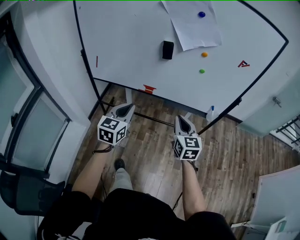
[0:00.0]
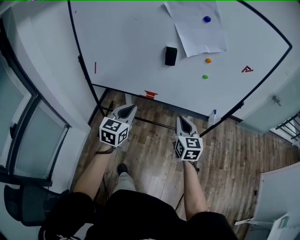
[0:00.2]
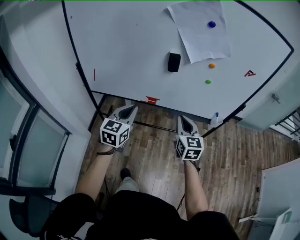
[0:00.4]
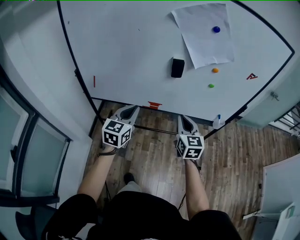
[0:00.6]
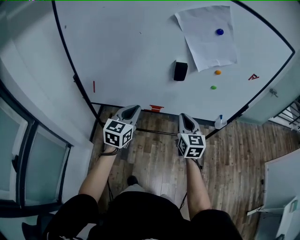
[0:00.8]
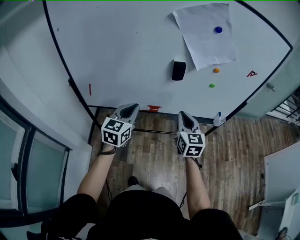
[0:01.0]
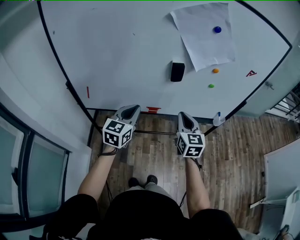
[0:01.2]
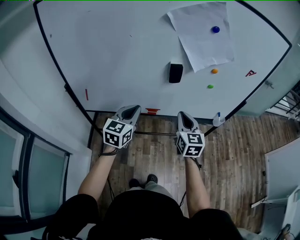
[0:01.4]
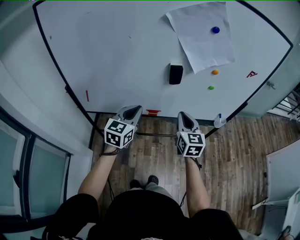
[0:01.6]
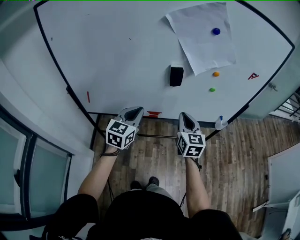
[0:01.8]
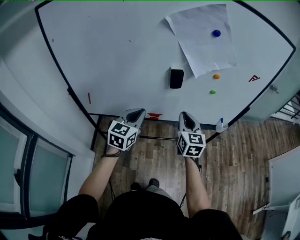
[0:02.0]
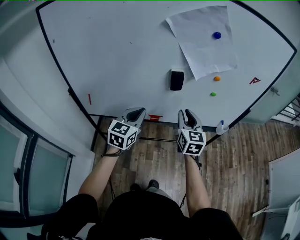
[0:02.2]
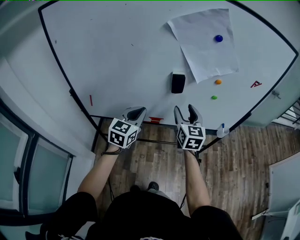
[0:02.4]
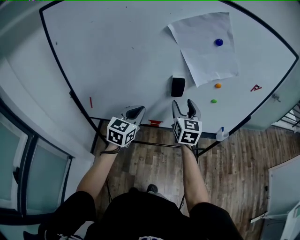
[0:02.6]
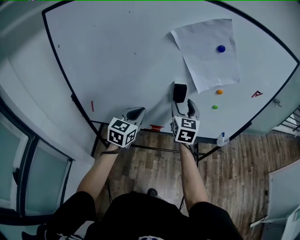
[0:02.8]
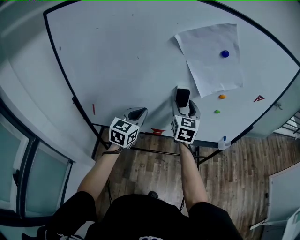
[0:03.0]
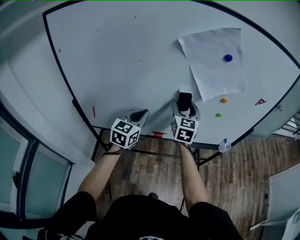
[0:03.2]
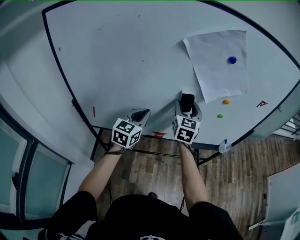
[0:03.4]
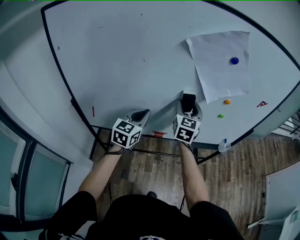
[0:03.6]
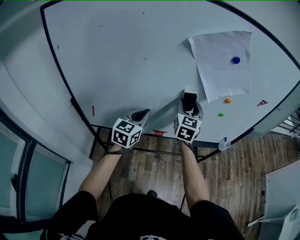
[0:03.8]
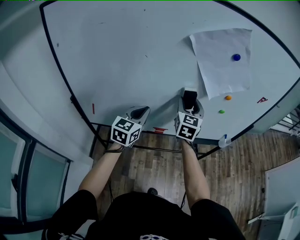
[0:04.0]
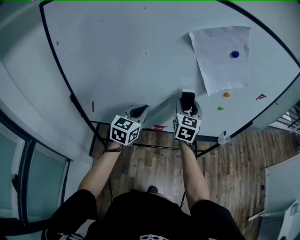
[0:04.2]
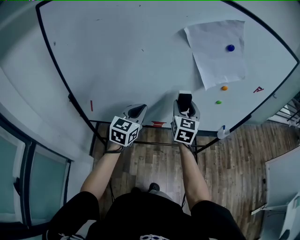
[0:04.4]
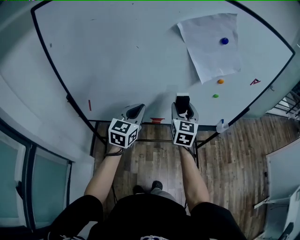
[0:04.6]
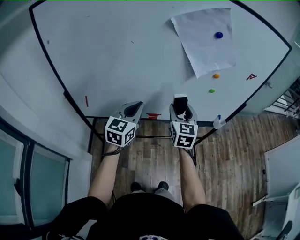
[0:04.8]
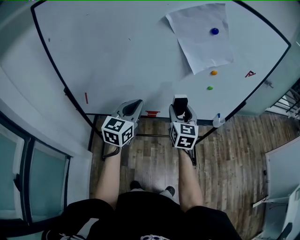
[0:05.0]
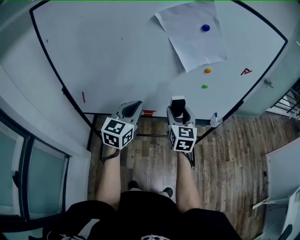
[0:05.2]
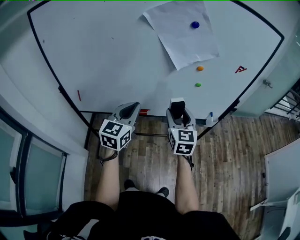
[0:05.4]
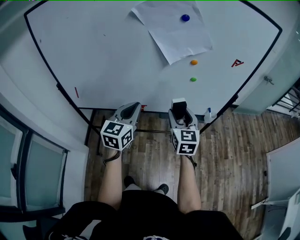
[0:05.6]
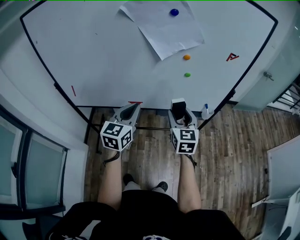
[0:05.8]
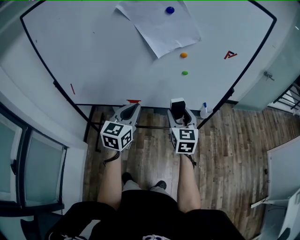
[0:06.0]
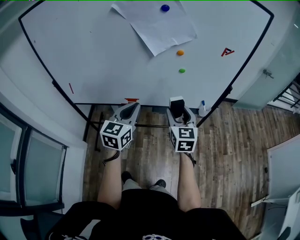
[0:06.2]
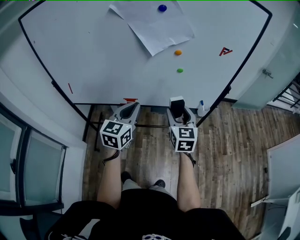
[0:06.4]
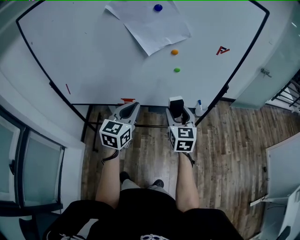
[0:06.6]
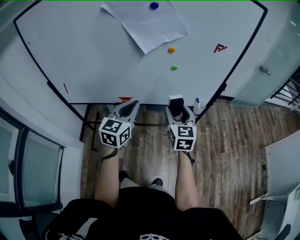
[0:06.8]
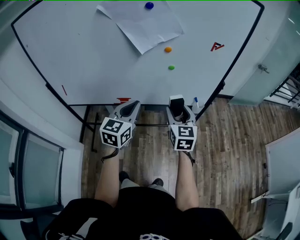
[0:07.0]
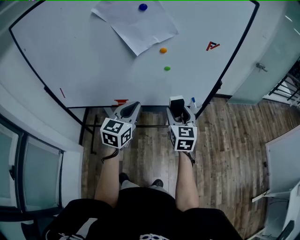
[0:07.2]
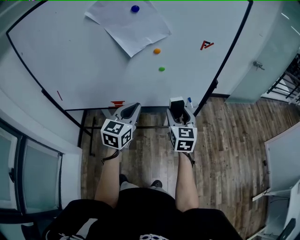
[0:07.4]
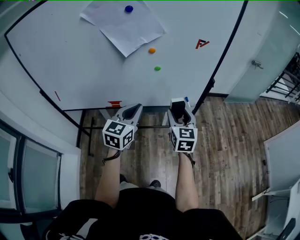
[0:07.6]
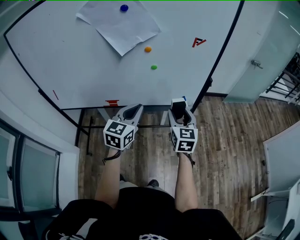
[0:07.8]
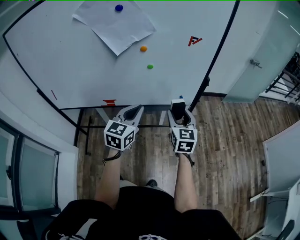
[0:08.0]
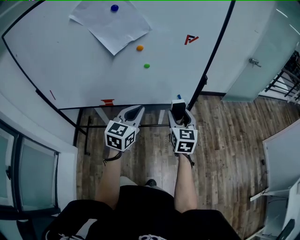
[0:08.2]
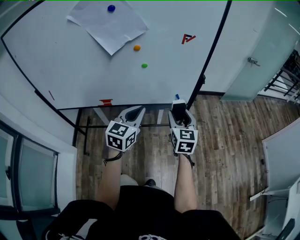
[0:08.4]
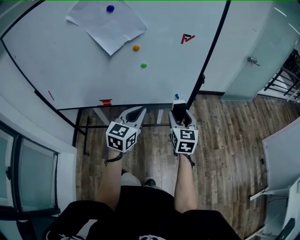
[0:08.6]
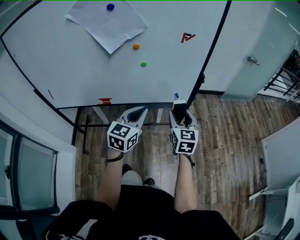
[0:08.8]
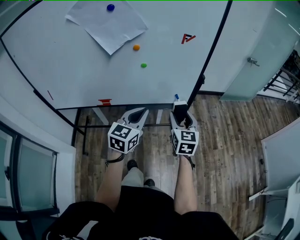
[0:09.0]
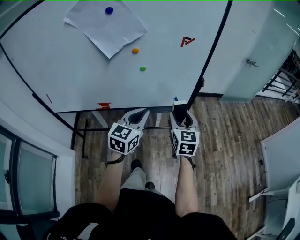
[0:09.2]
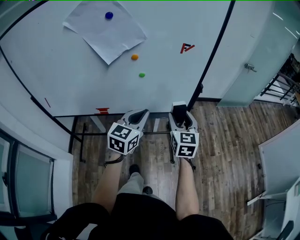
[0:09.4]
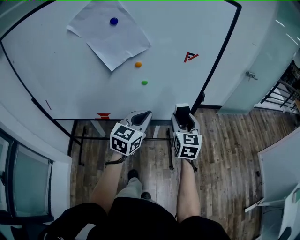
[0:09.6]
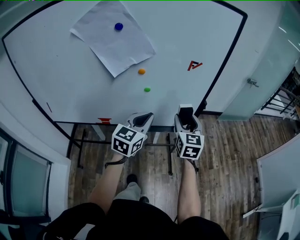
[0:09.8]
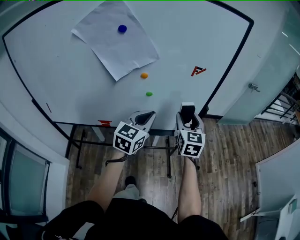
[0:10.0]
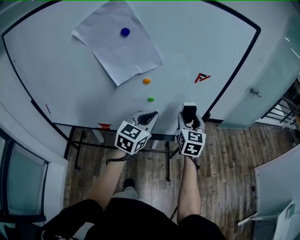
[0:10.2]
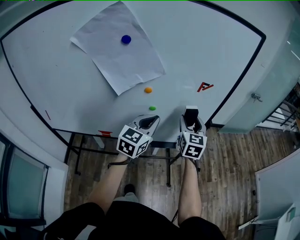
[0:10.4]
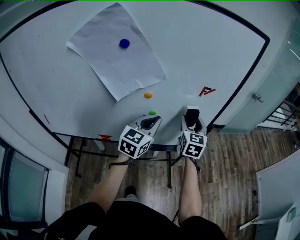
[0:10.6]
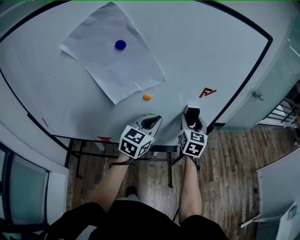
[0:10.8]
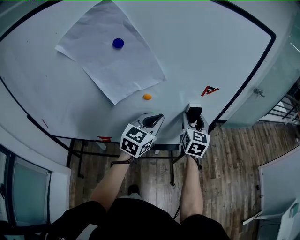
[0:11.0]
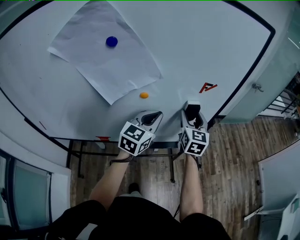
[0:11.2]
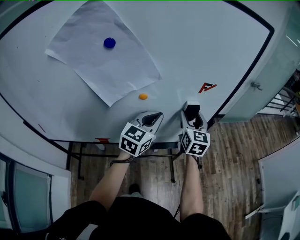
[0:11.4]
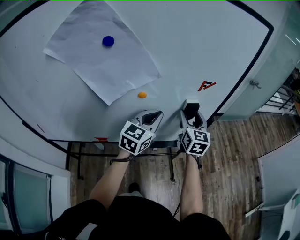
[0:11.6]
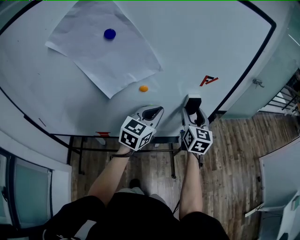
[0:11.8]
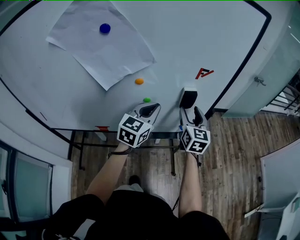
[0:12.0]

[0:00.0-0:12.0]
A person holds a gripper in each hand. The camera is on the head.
0:00.0 to 0:01.6: The two grippers go approximately 20 cm forward and to the left.
0:01.6 to 0:03.0: The left gripper travels forward by some 5 cm. The right gripper shifts some 15 cm forward, upward and to the left, and opens up.
0:03.0 to 0:04.4: The grippers stay close to where they were, moving slightly.
0:04.4 to 0:06.0: The two grippers go about 25 cm to the right and backward.
0:06.0 to 0:07.6: The grippers both shift to the right by some 15 cm.
0:07.6 to 0:09.0: Both grippers move to the right, roughly 10 cm.
0:09.0 to 0:10.4: The left gripper travels forward by roughly 15 cm; the right gripper heads forward and upward, covering some 20 cm.
0:10.4 to 0:12.0: The left gripper shifts by about 5 cm.

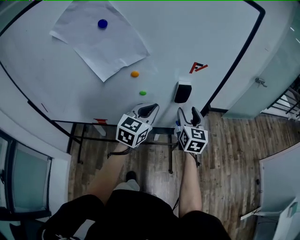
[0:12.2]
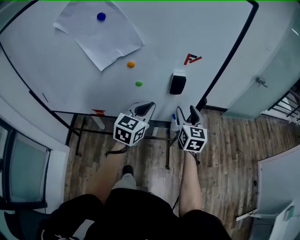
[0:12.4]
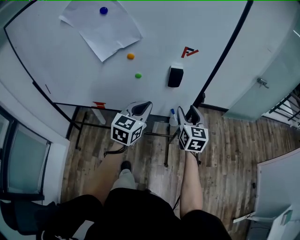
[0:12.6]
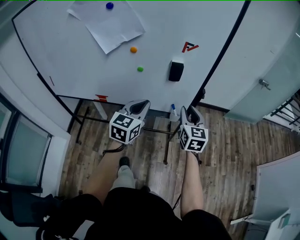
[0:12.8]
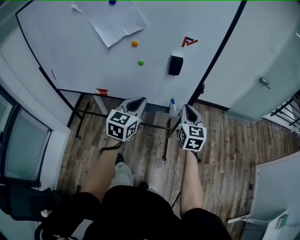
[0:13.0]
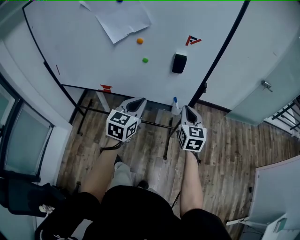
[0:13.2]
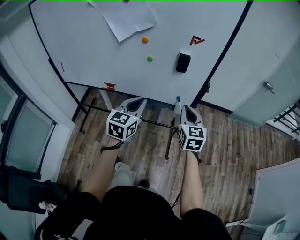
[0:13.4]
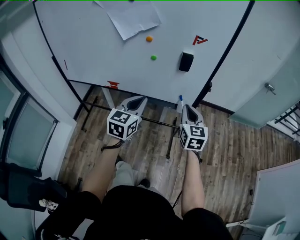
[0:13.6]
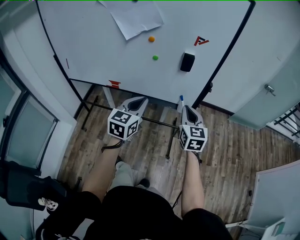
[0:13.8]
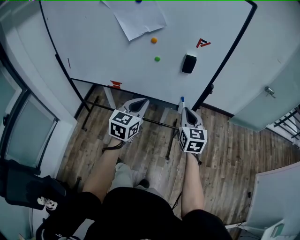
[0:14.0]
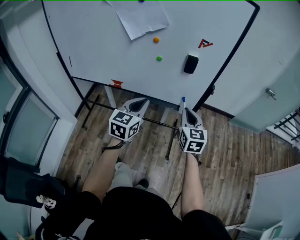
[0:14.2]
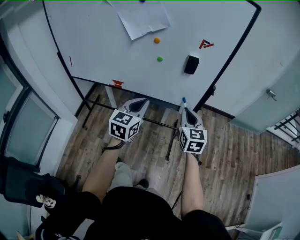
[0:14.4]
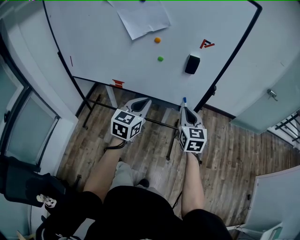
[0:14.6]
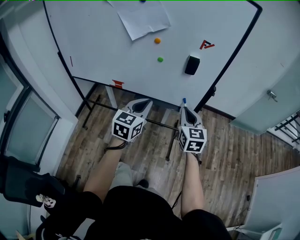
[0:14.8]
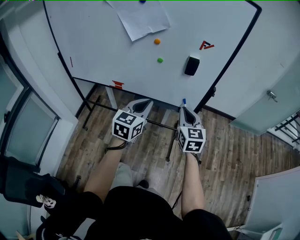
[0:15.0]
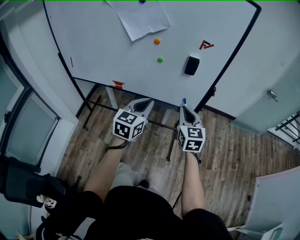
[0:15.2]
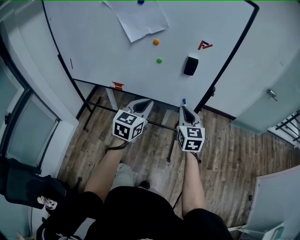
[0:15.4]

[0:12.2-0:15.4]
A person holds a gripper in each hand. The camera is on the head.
0:12.2 to 0:13.8: The two grippers go approximately 20 cm backward. The right gripper closes its fingers.
0:13.8 to 0:15.4: There are only small adjustments of the grippers.

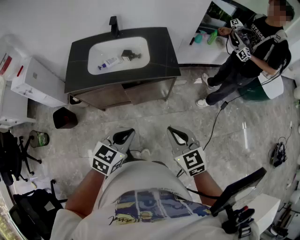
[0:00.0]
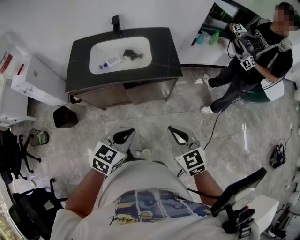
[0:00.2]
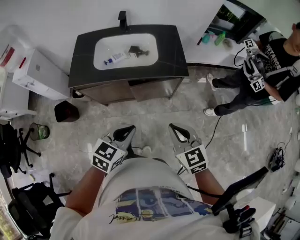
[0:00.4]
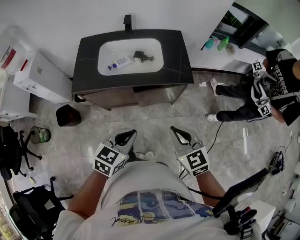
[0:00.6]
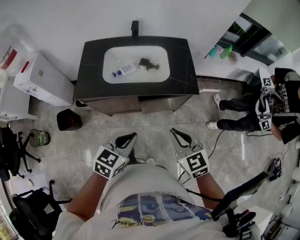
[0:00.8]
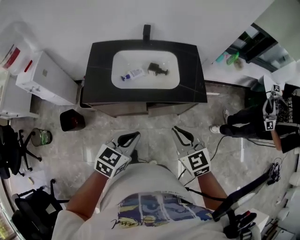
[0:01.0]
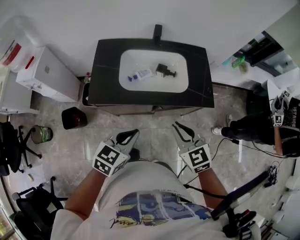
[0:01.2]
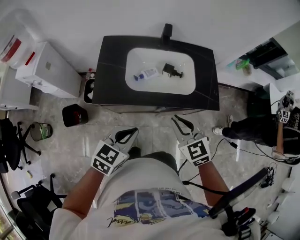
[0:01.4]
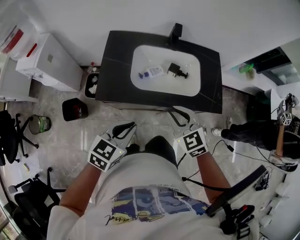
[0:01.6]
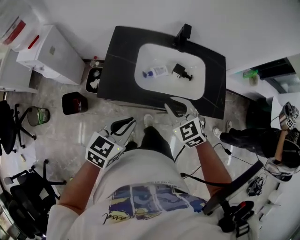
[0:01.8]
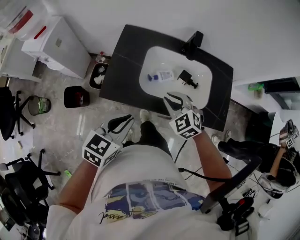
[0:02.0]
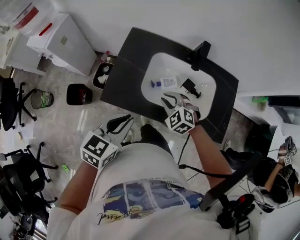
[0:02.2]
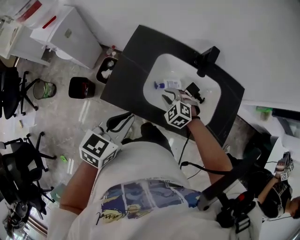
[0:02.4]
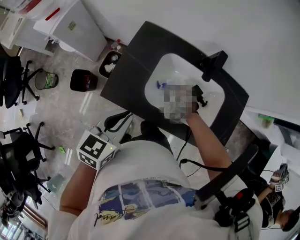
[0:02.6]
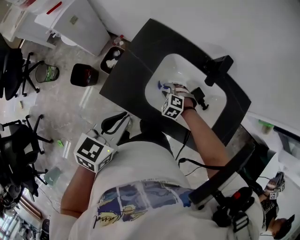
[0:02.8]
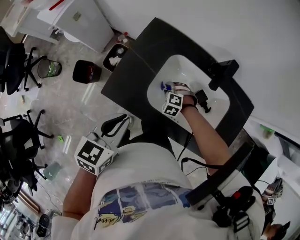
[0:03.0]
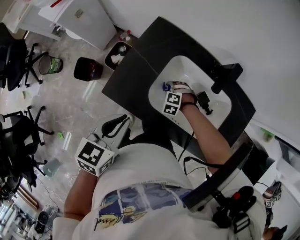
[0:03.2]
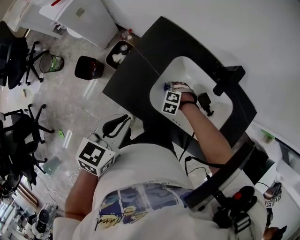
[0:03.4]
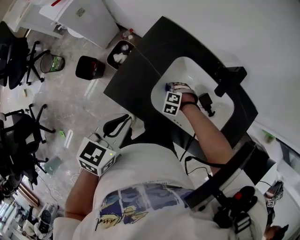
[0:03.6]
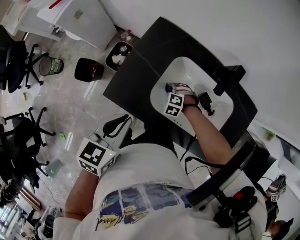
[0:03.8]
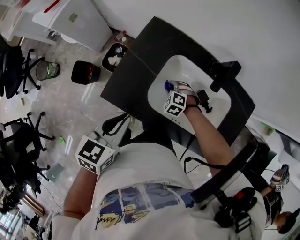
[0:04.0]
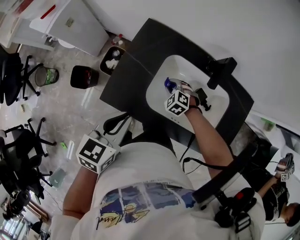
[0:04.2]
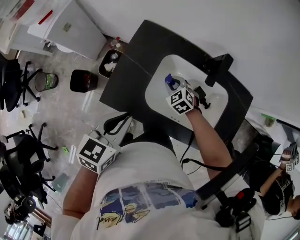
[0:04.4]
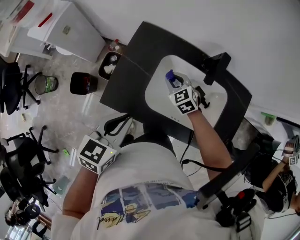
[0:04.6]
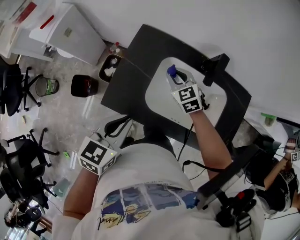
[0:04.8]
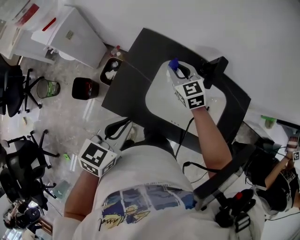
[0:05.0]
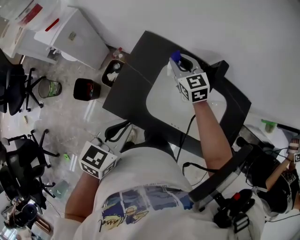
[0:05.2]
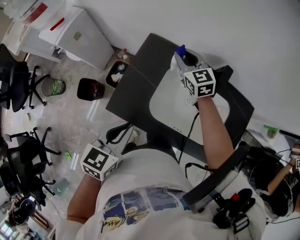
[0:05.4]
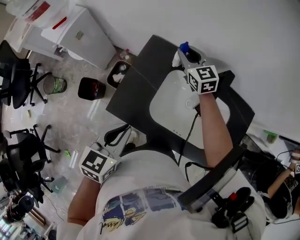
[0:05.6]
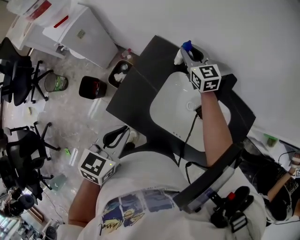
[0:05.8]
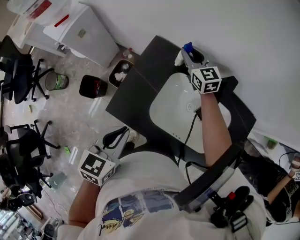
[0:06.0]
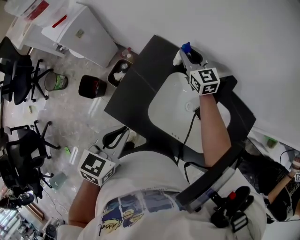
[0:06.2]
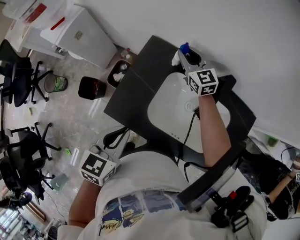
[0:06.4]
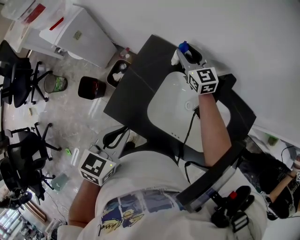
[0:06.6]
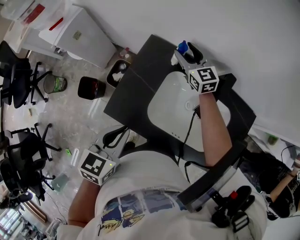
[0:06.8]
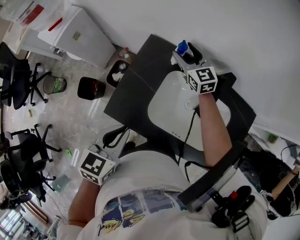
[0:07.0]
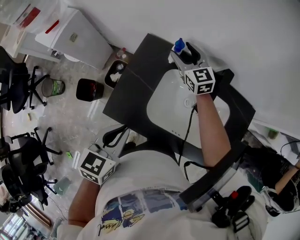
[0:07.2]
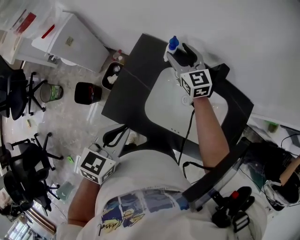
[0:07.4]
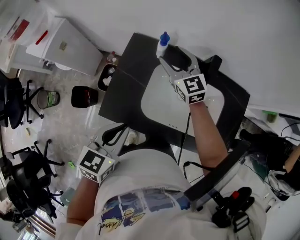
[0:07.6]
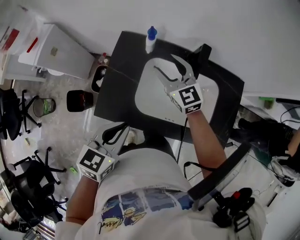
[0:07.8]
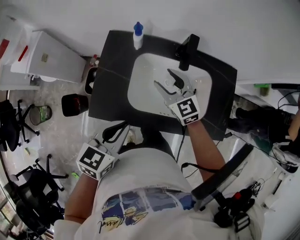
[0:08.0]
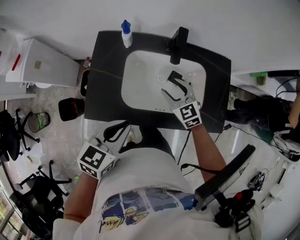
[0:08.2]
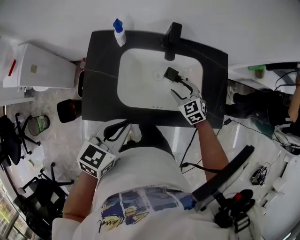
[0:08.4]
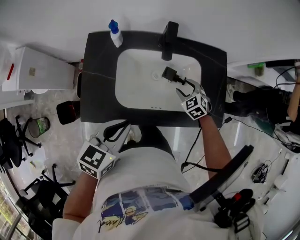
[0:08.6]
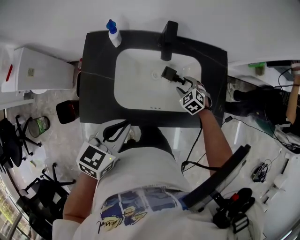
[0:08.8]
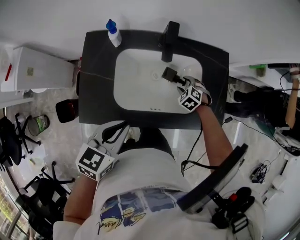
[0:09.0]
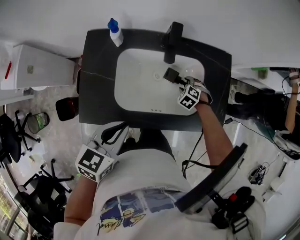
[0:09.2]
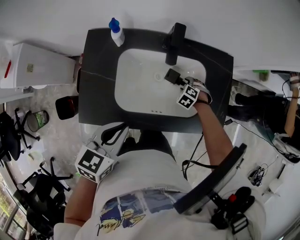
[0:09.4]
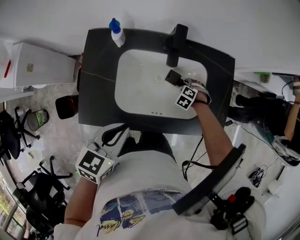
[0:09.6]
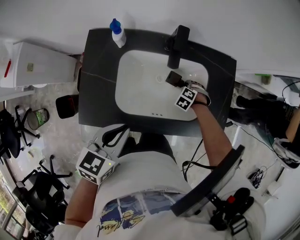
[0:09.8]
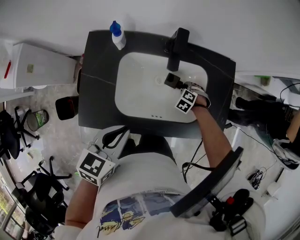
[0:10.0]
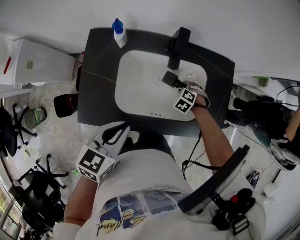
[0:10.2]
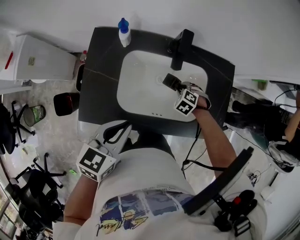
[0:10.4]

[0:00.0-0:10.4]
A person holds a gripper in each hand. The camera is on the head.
0:00.0 to 0:01.4: Both grippers travel together to the left and forward, roughly 30 cm.
0:01.4 to 0:03.0: The left gripper moves some 20 cm, and rotates roughly 40 degrees, while the right gripper shifts about 35 cm downward, and tilts its fingers approximately 40 degrees downward.
0:03.0 to 0:04.4: The right gripper moves upward, about 10 cm, and turns by roughly 40 degrees.
0:04.4 to 0:06.0: The right gripper shifts about 25 cm forward and upward, and tilts its fingers about 40 degrees upward.
0:06.0 to 0:07.4: The right gripper opens.
0:07.4 to 0:09.0: The right gripper shifts by roughly 40 cm, and tips its fingers downward by about 50 degrees. Meanwhile the left gripper moves about 10 cm, and rotates approximately 20 degrees.
0:09.0 to 0:10.4: The right gripper closes its fingers.
